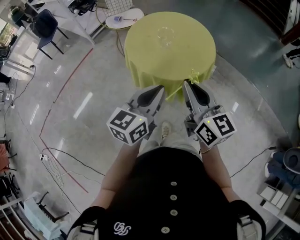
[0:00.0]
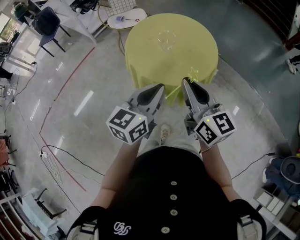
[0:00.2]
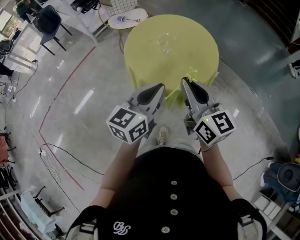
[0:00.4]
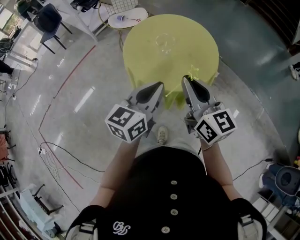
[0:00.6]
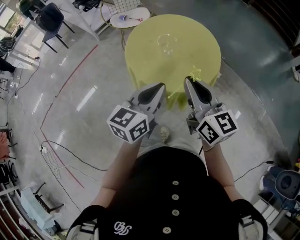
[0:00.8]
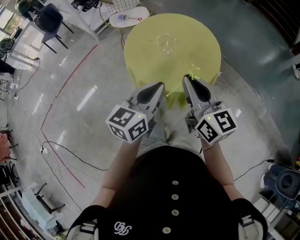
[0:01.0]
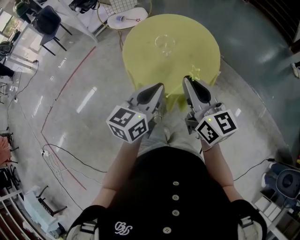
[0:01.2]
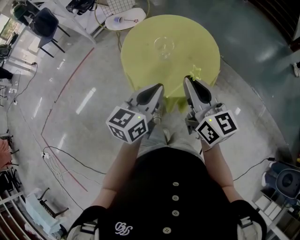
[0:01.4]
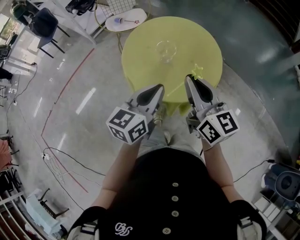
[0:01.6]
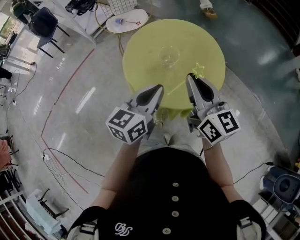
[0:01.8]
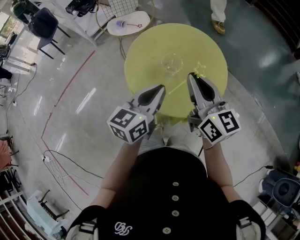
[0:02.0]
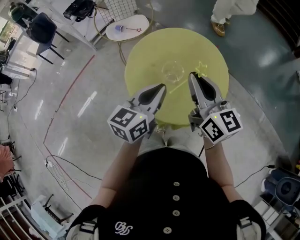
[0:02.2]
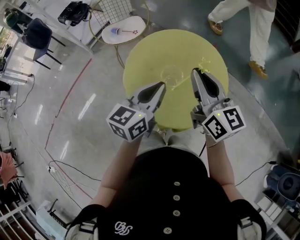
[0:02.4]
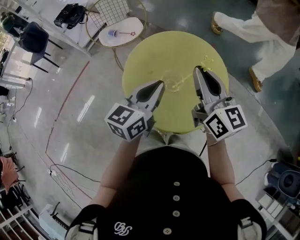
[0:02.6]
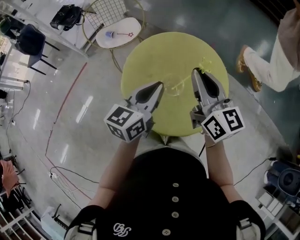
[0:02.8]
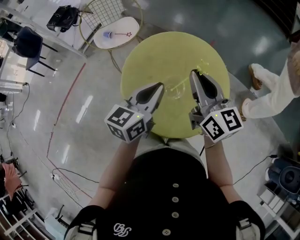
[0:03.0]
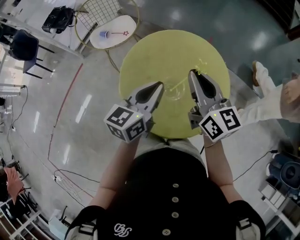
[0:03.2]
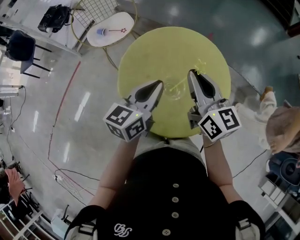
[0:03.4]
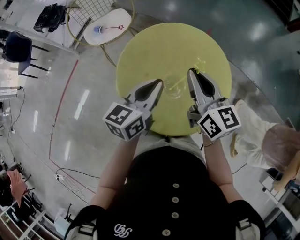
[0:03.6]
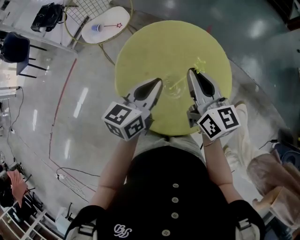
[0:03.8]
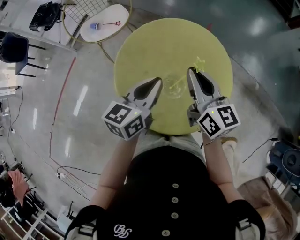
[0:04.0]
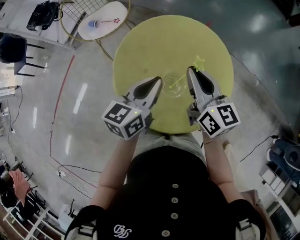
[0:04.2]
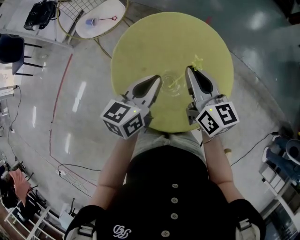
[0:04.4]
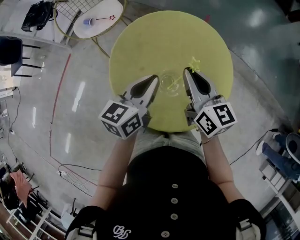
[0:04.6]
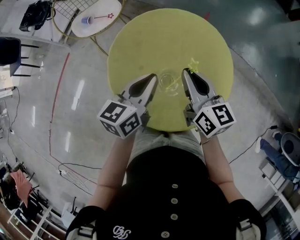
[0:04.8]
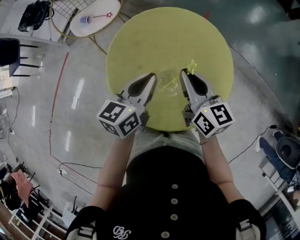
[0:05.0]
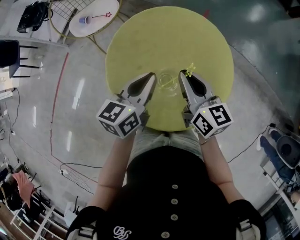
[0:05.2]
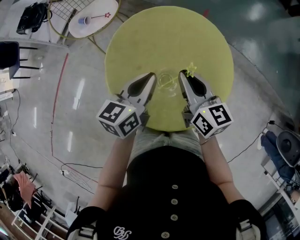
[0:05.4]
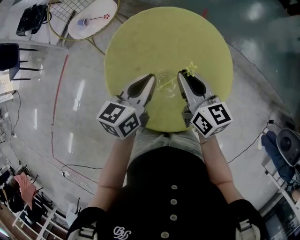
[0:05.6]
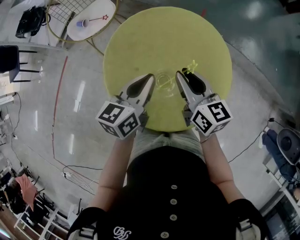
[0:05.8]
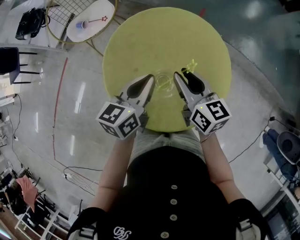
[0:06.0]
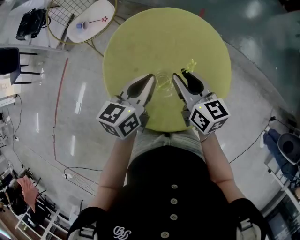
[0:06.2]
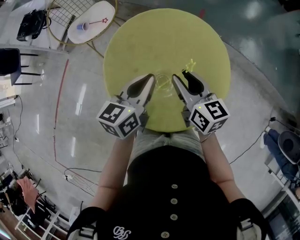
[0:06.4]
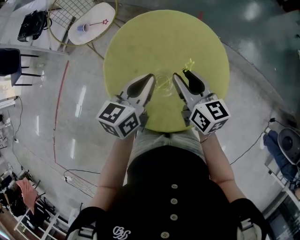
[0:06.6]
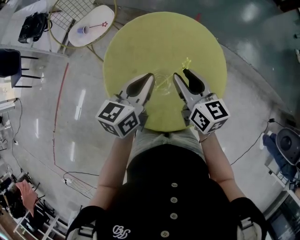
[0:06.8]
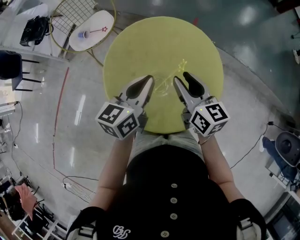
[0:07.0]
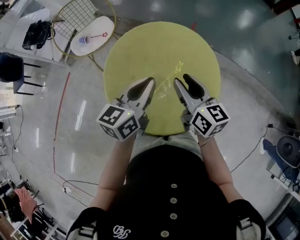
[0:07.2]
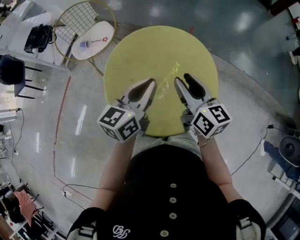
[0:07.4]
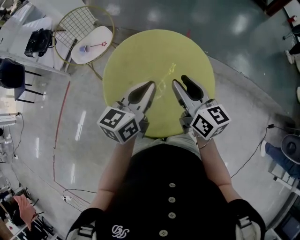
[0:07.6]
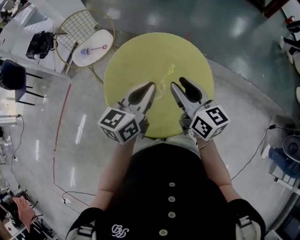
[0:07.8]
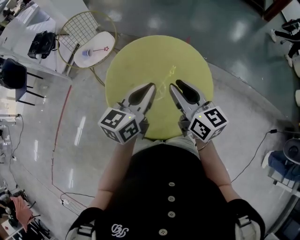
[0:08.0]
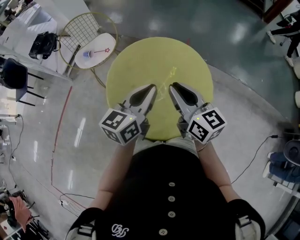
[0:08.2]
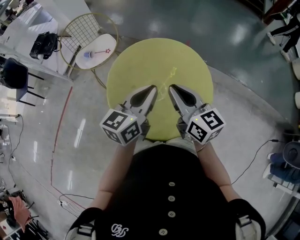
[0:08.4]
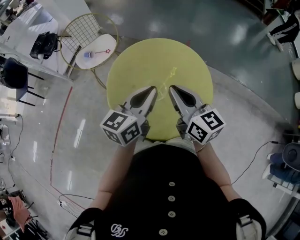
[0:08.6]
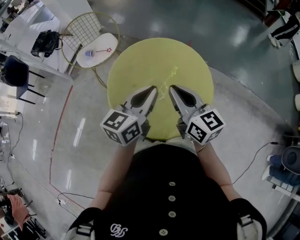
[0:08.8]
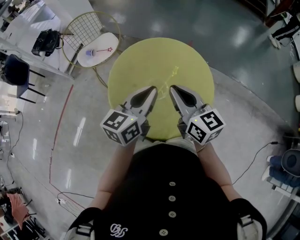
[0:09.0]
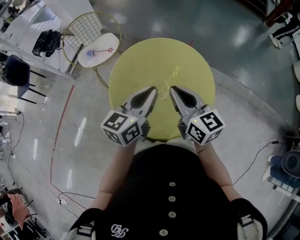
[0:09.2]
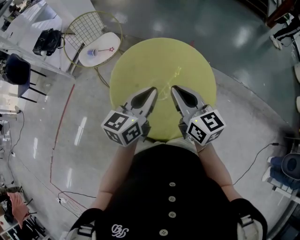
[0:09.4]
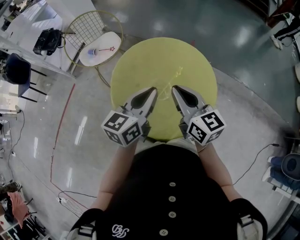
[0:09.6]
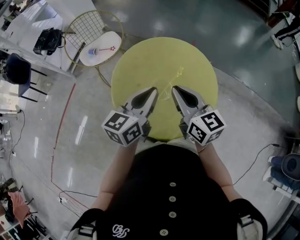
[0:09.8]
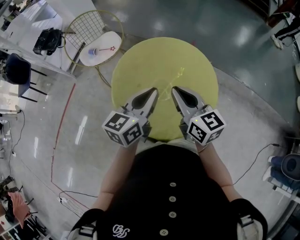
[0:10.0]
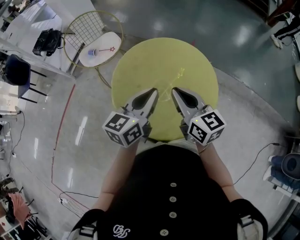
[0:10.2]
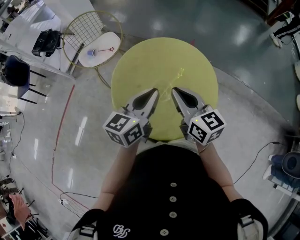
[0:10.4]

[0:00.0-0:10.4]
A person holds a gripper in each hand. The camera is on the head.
0:00.0 to 0:01.4: Both grippers travel together forward, approximately 10 cm.
0:01.4 to 0:03.0: Both grippers move forward, about 25 cm.
0:03.0 to 0:04.4: Both grippers travel together downward, approximately 5 cm.
0:04.4 to 0:06.0: The right gripper is displaced downward by approximately 5 cm, and opens up.
0:06.0 to 0:07.4: The two grippers go approximately 5 cm upward.
0:07.4 to 0:09.0: The right gripper ends up about 5 cm from where it was, and closes up.
0:09.0 to 0:10.4: The grippers stay close to where they were, moving slightly.

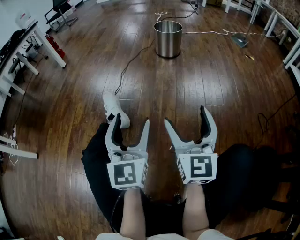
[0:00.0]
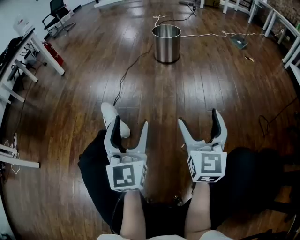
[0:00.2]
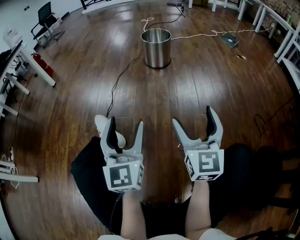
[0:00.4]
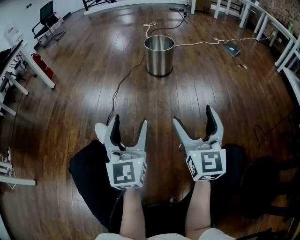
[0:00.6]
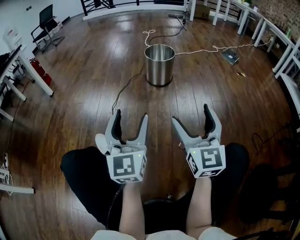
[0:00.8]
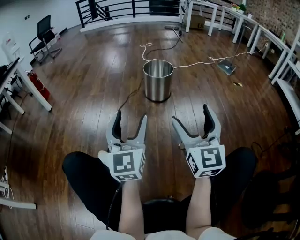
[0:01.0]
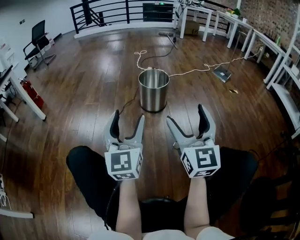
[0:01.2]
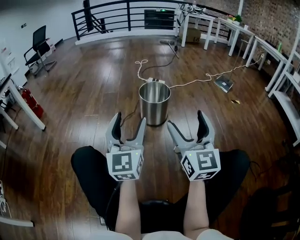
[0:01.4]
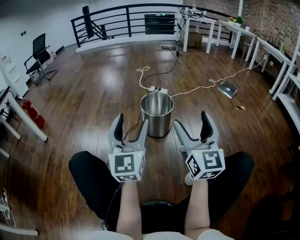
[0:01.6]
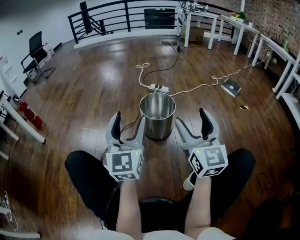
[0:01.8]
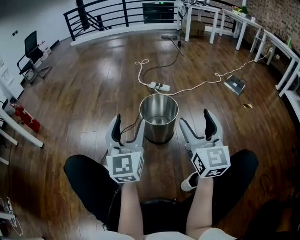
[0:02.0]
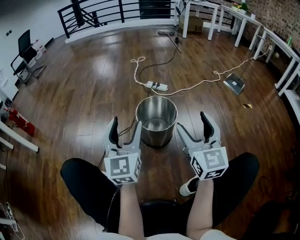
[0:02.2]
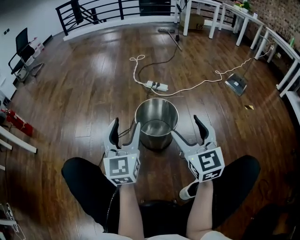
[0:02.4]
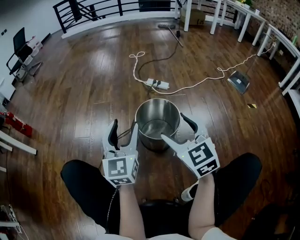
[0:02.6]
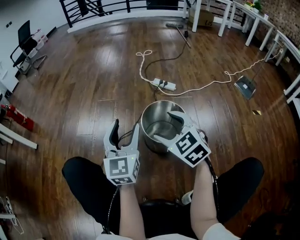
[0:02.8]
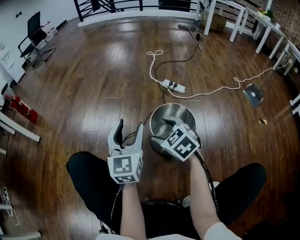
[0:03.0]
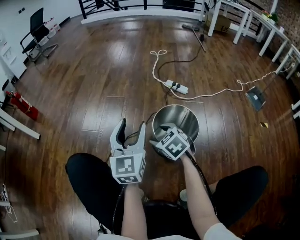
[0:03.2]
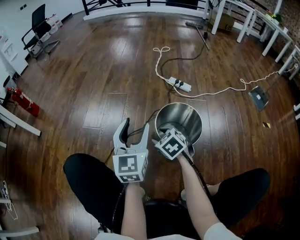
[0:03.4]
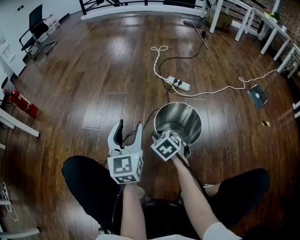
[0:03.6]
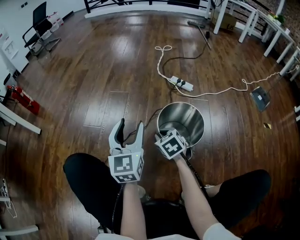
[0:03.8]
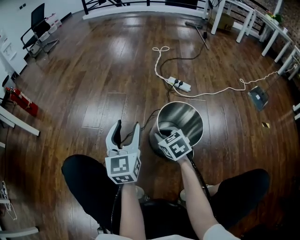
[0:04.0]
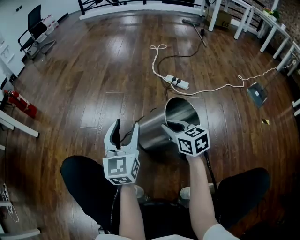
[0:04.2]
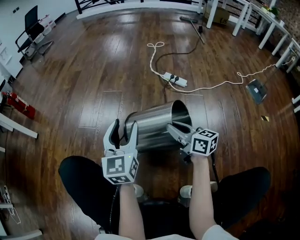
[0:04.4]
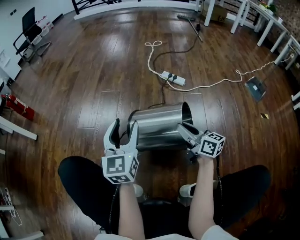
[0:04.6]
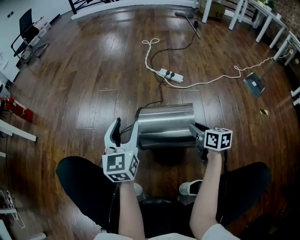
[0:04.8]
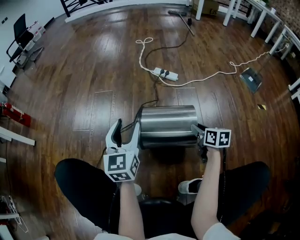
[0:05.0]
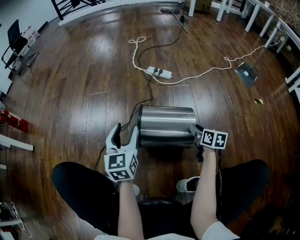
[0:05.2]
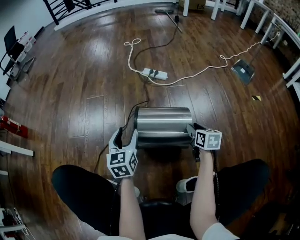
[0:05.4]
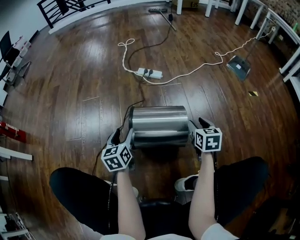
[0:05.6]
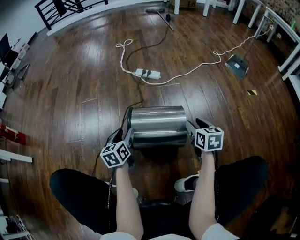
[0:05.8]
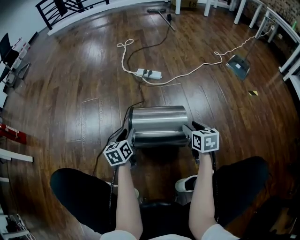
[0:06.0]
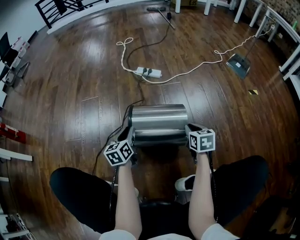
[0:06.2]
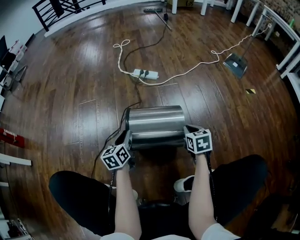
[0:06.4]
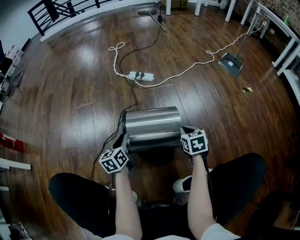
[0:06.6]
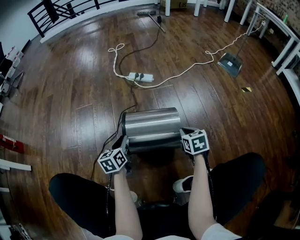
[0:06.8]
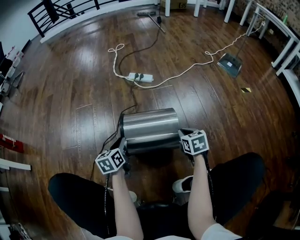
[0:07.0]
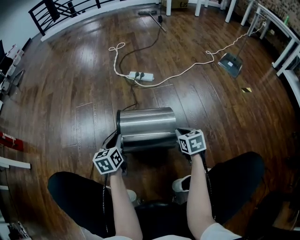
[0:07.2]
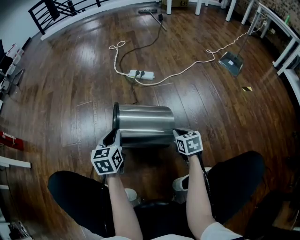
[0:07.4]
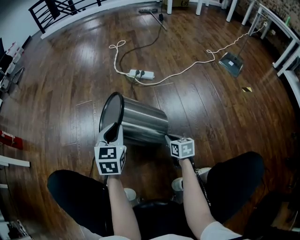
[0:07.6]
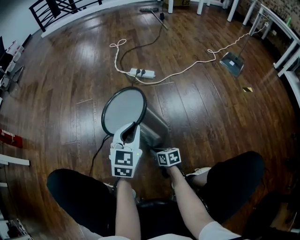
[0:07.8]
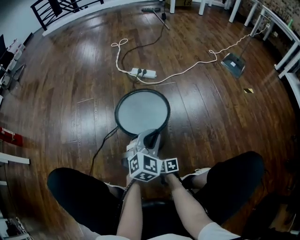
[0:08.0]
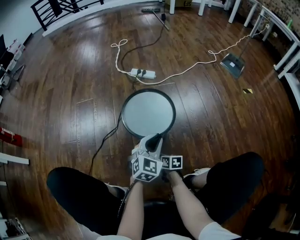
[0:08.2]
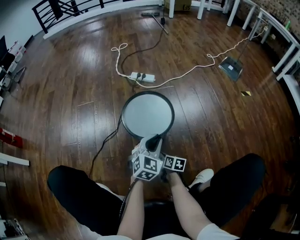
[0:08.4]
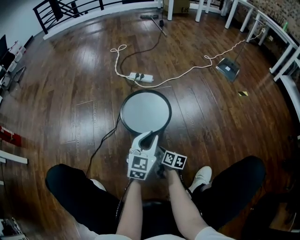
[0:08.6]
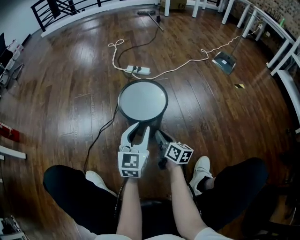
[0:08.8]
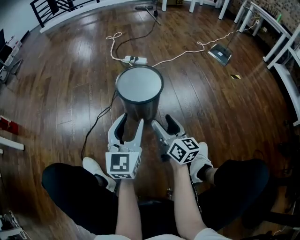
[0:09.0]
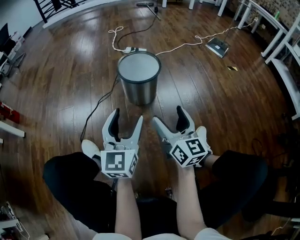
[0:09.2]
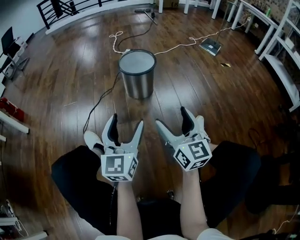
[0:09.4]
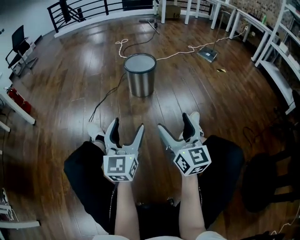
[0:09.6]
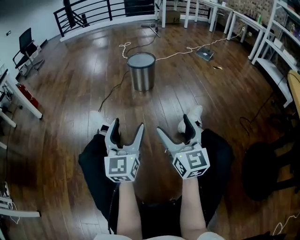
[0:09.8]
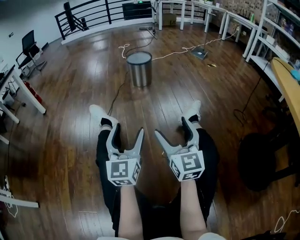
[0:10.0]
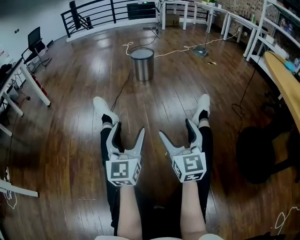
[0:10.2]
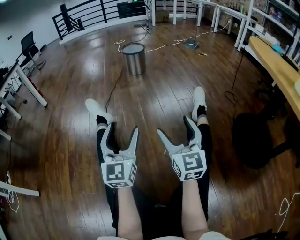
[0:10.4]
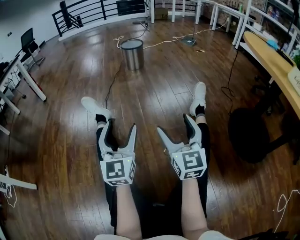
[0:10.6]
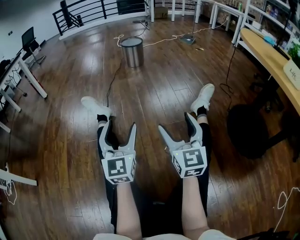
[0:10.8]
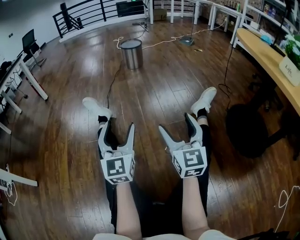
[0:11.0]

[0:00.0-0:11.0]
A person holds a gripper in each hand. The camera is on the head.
0:00.0 to 0:01.6: The pair of grippers is taken forward, roughly 50 cm.
0:01.6 to 0:03.2: The right gripper changes place by approximately 50 cm, and angles its fingers downward, by approximately 60 degrees, while the left gripper ends up about 35 cm from where it was.
0:03.2 to 0:04.8: The right gripper goes roughly 20 cm to the right, twists about 50 degrees clockwise, seen from behind, and closes its fingers.
0:04.8 to 0:06.2: The left gripper travels downward by roughly 20 cm, swivels about 30 degrees, and closes; the right gripper moves to the right and downward, about 10 cm, and changes its angle by approximately 20 degrees.
0:06.2 to 0:07.8: The right gripper is displaced to the left, downward and backward by approximately 25 cm, and turns by approximately 30 degrees. Meanwhile the left gripper travels upward and to the right by roughly 15 cm, and rotates about 40 degrees.
0:07.8 to 0:09.4: The left gripper moves backward, about 35 cm, turns by approximately 30 degrees, and opens its fingers. The right gripper moves upward and backward, some 50 cm, tips its fingers upward by approximately 40 degrees, and opens up.
0:09.4 to 0:11.0: Both grippers are carried backward, roughly 70 cm.

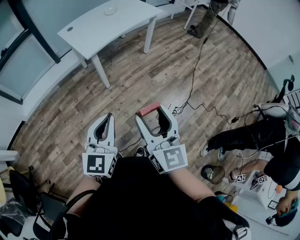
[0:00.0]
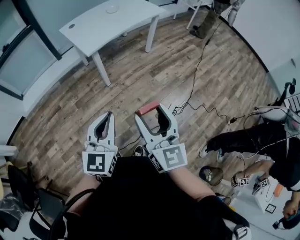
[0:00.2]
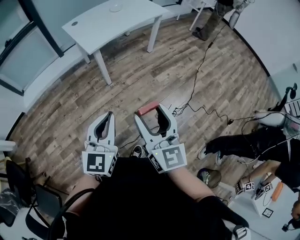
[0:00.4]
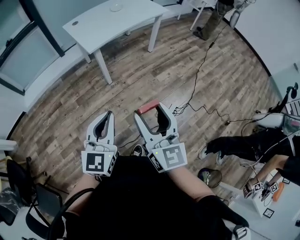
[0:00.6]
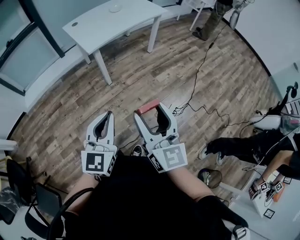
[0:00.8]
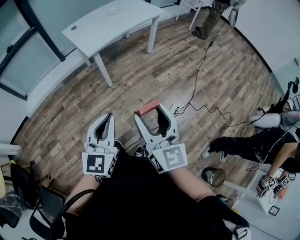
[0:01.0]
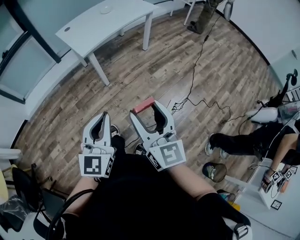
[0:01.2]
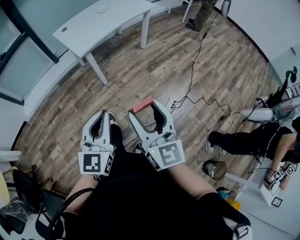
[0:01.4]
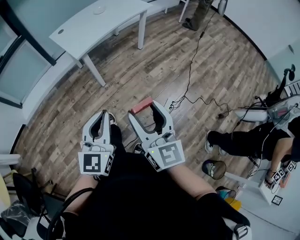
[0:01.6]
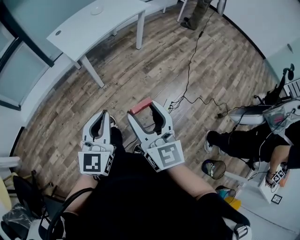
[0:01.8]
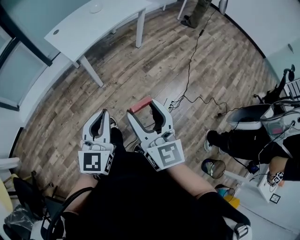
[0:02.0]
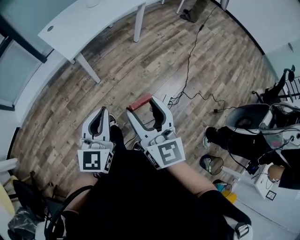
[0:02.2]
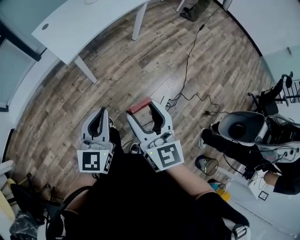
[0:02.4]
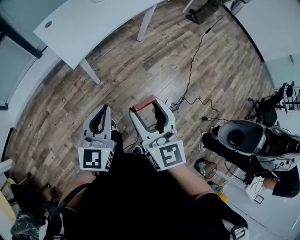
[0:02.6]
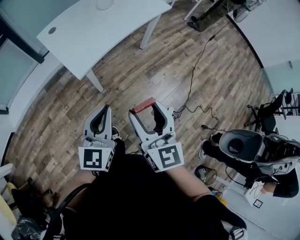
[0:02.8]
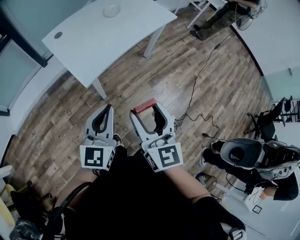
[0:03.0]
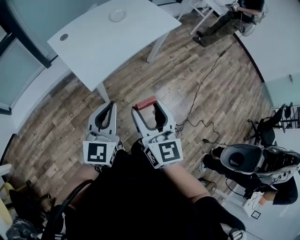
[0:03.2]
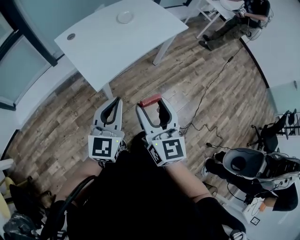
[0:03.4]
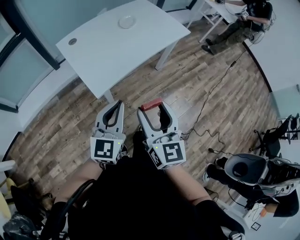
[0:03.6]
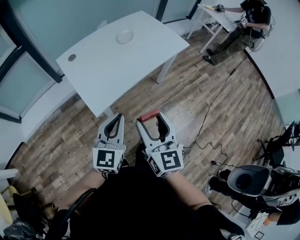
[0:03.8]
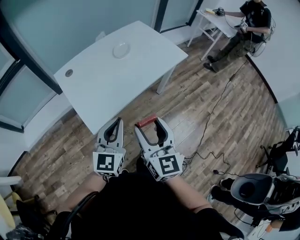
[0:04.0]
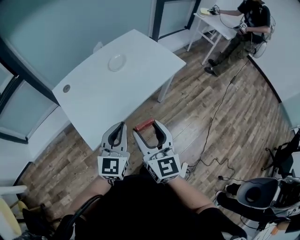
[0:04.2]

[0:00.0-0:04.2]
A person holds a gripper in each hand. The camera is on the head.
0:00.0 to 0:01.4: There are only small adjustments of the grippers.
0:01.4 to 0:02.8: The grippers both shift forward by approximately 30 cm.
0:02.8 to 0:04.2: Both grippers move forward, some 25 cm.
